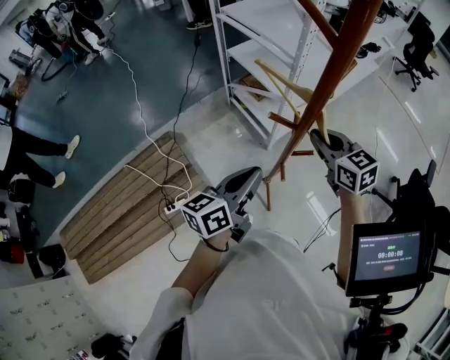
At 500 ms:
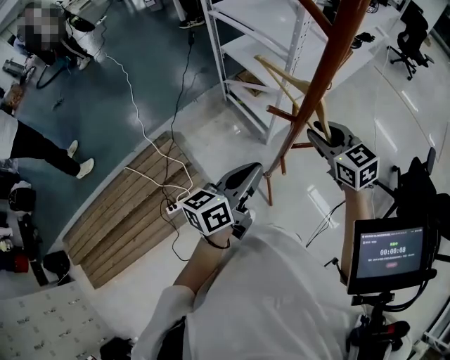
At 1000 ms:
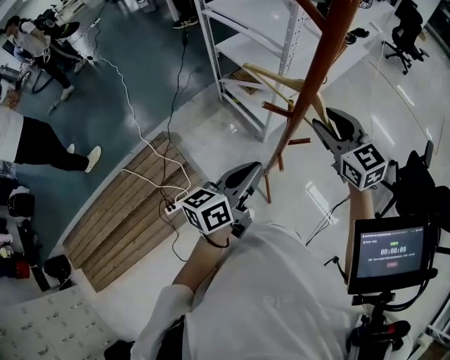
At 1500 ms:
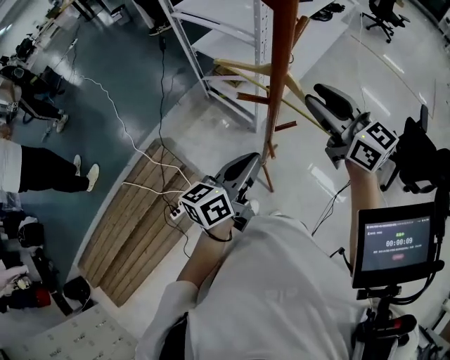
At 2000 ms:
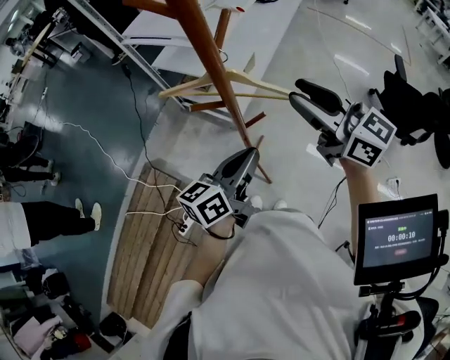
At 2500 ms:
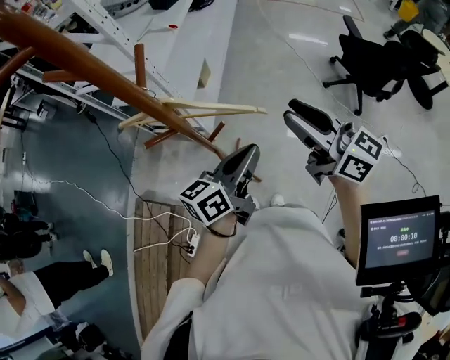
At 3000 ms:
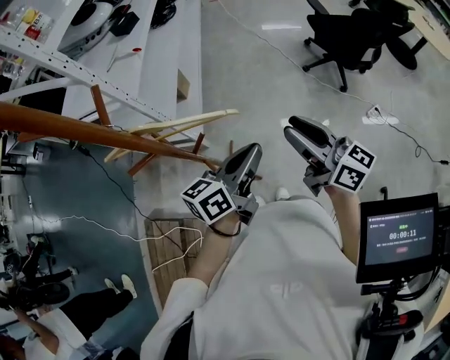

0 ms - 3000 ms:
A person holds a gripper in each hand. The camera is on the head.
0 ms - 1500 ms: The right gripper travels upward by roughly 10 cm, turns by about 20 degrees, and opens up.
1500 ms - 3000 ms: The right gripper shifts by roughly 25 cm, and changes its angle by approximately 40 degrees; the left gripper moves some 25 cm, and swivels about 40 degrees.

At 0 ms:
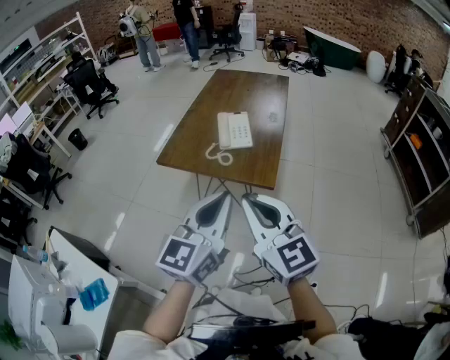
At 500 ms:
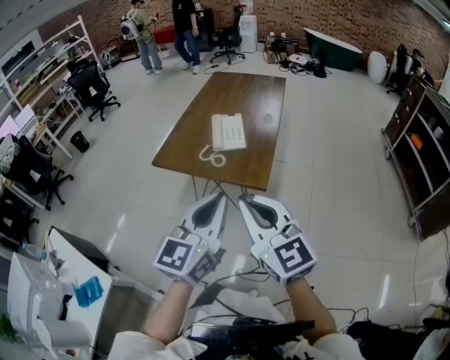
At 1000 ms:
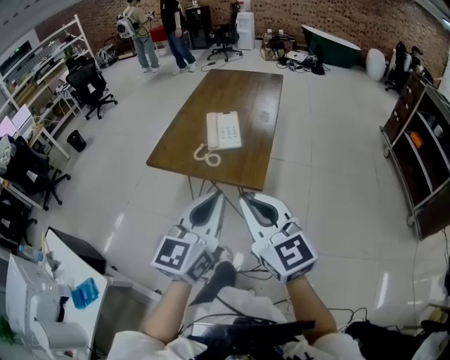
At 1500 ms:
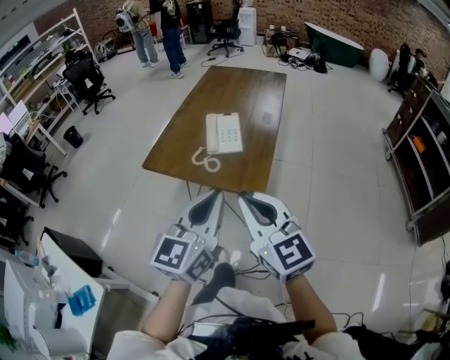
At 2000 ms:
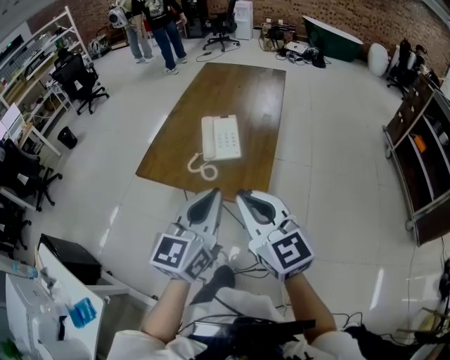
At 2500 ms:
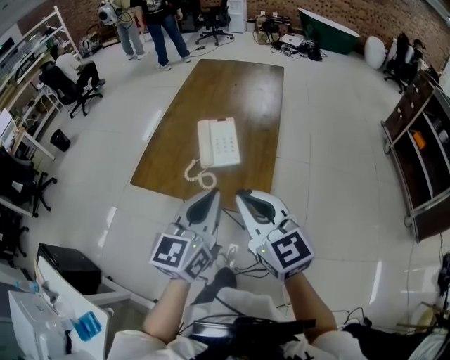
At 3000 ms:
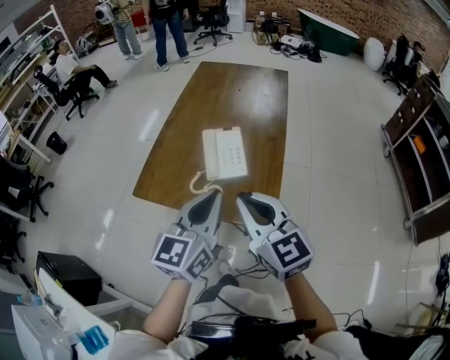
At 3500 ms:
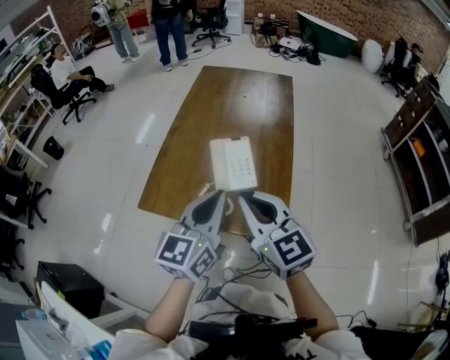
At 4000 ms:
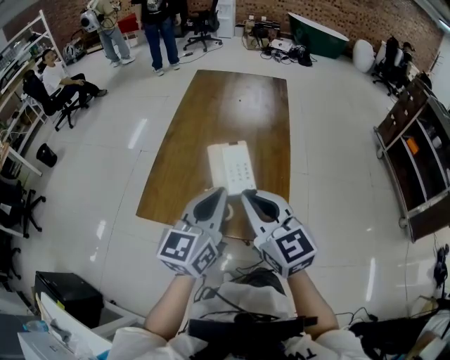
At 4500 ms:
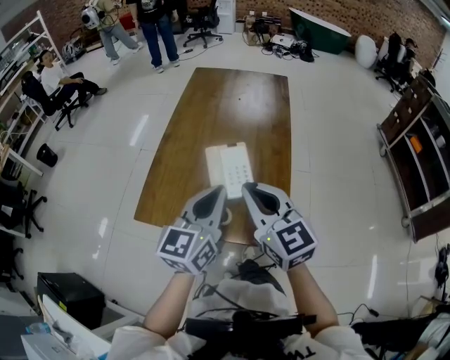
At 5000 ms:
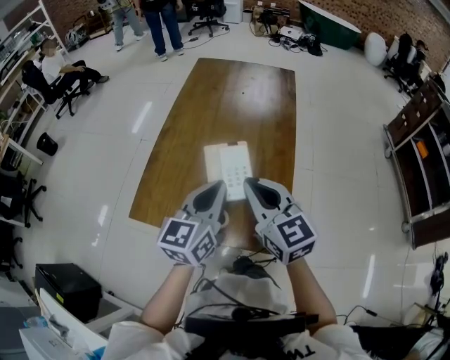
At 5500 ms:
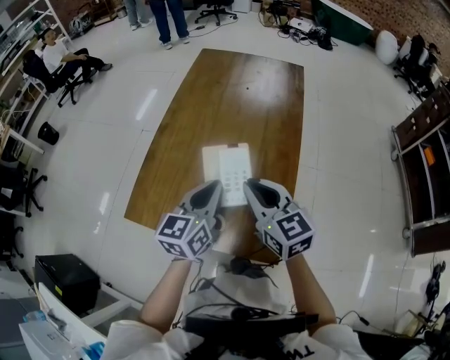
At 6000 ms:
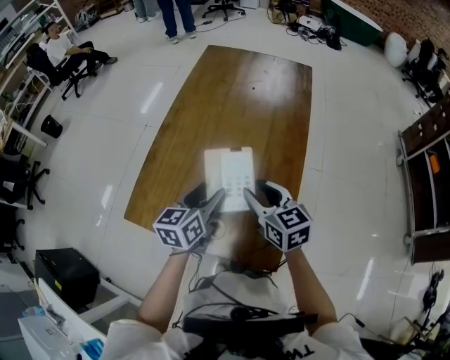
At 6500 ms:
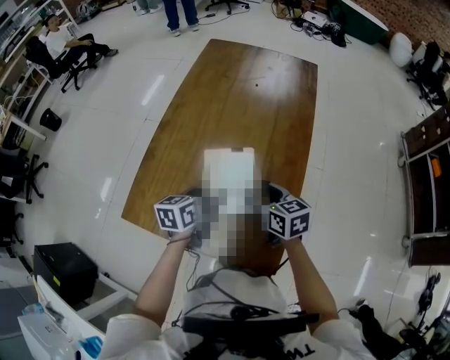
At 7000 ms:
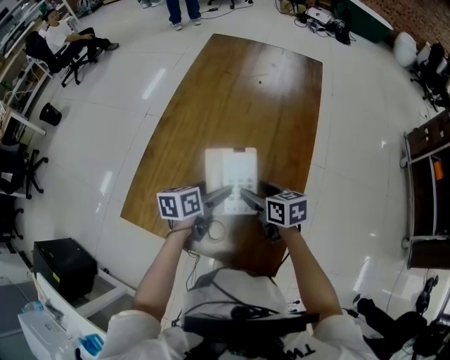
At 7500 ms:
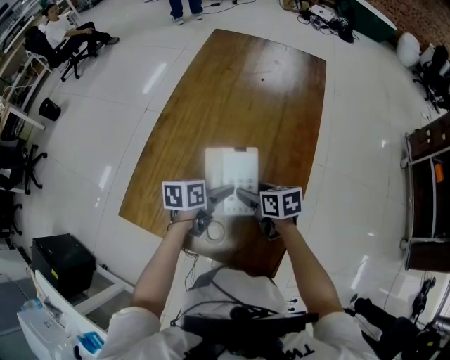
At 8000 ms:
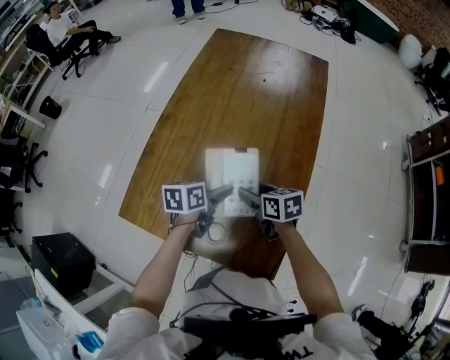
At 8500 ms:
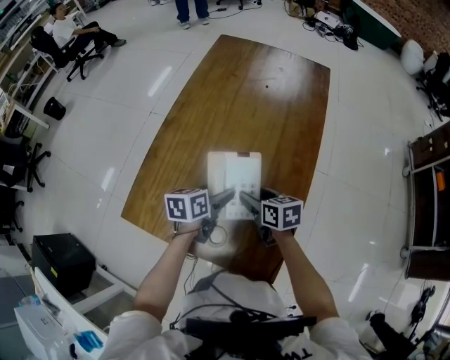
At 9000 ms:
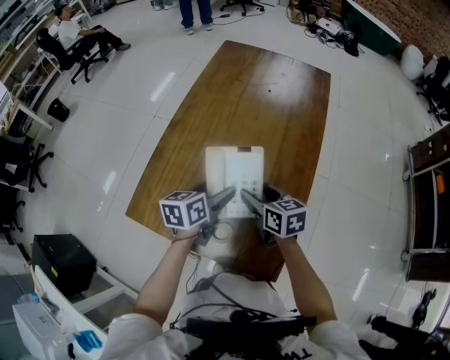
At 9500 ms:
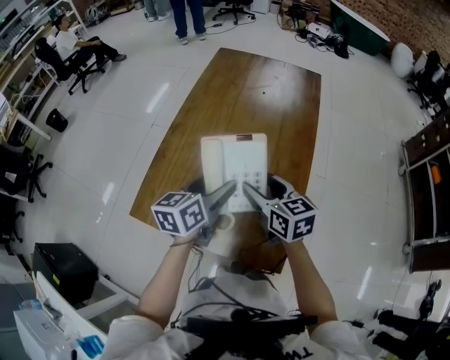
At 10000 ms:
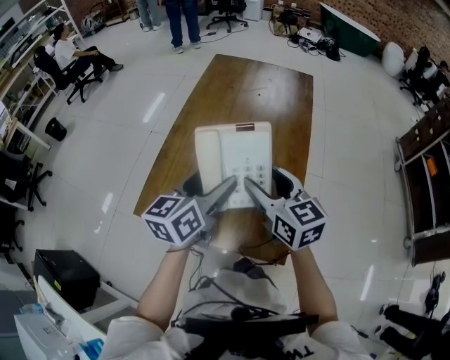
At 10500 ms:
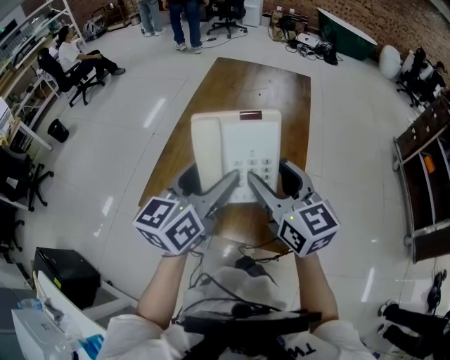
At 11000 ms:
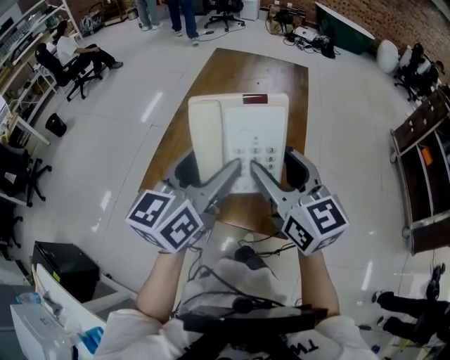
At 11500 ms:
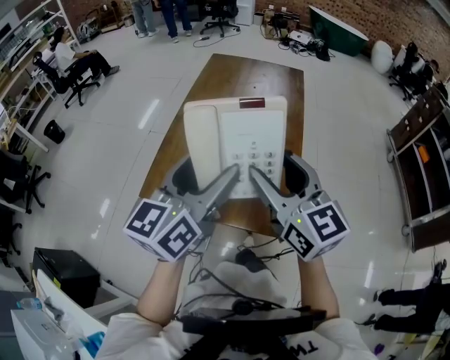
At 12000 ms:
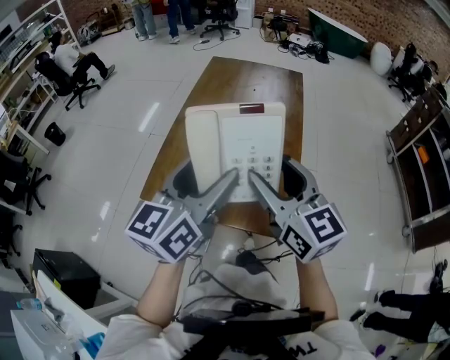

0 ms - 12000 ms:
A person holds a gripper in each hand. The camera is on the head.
0 ms - 2000 ms: The left gripper goes roughly 10 cm forward. Meanwhile the right gripper shifts approximately 15 cm forward and to the right.
2000 ms - 4000 ms: The two grippers go some 15 cm forward.
4000 ms - 6000 ms: The left gripper heads downward and forward, covering about 20 cm, rotates about 20 degrees, and opens up. Meanwhile the right gripper heads forward, downward and to the right, covering approximately 20 cm, changes its angle by approximately 20 degrees, and opens its fingers.
6000 ms - 8000 ms: The left gripper shifts some 15 cm downward and forward, and turns by approximately 30 degrees. Meanwhile the right gripper travels downward by some 15 cm, turns by about 30 degrees, and opens its fingers.
8000 ms - 10000 ms: Both grippers travel together upward, roughly 25 cm. The right gripper swivels roughly 40 degrees. Meanwhile the left gripper swivels approximately 30 degrees.
10000 ms - 12000 ms: Both grippers travel together backward and upward, about 15 cm.

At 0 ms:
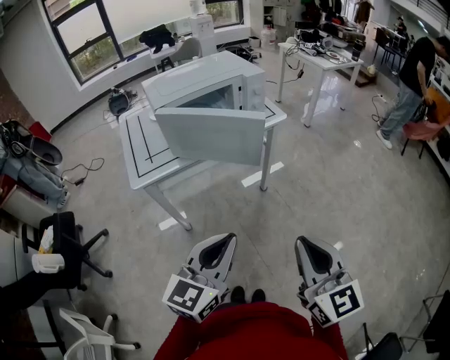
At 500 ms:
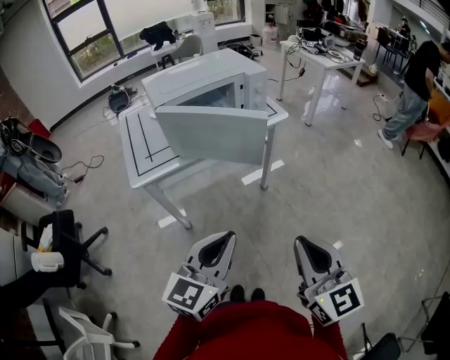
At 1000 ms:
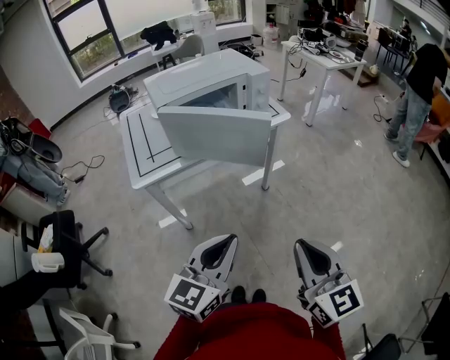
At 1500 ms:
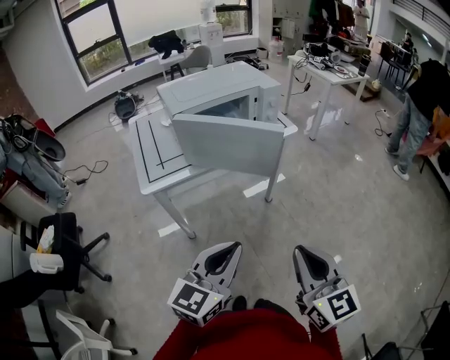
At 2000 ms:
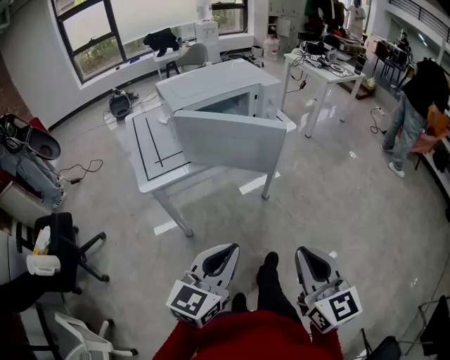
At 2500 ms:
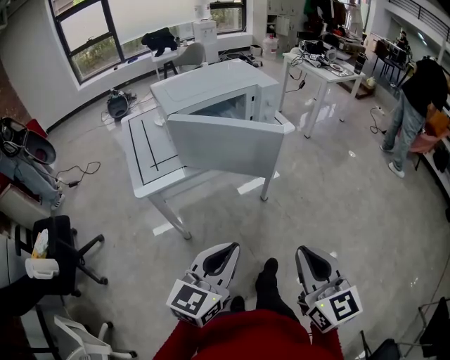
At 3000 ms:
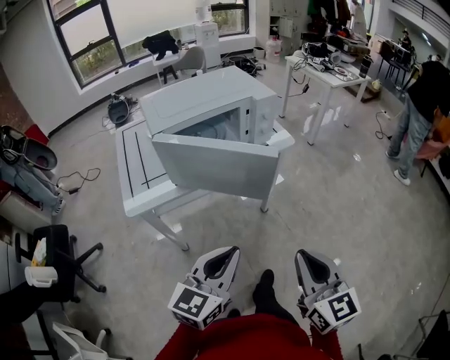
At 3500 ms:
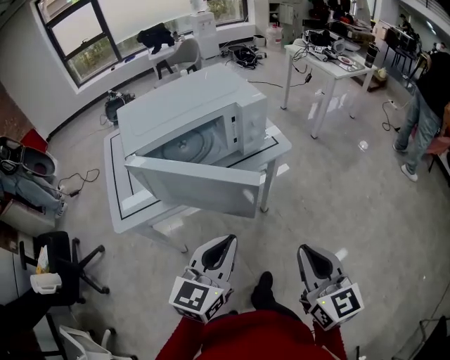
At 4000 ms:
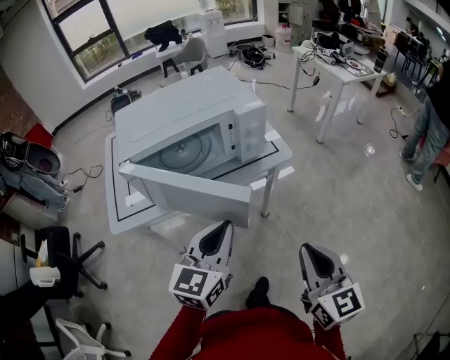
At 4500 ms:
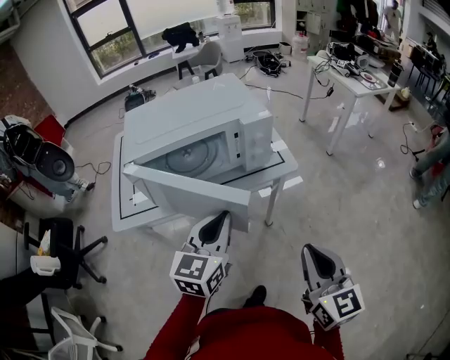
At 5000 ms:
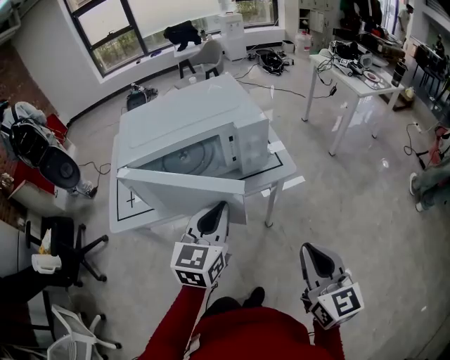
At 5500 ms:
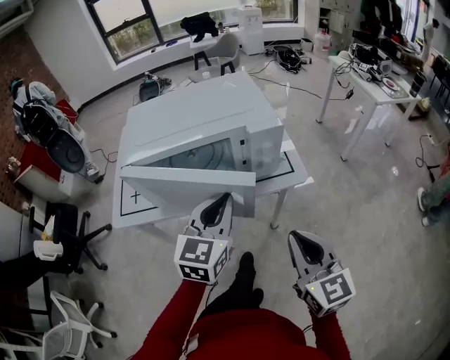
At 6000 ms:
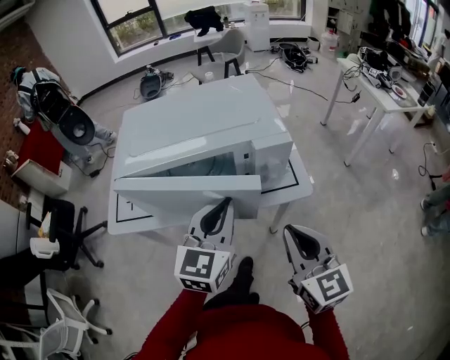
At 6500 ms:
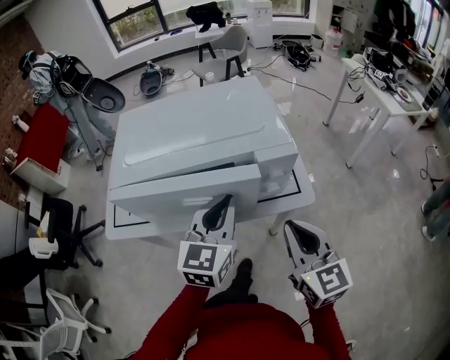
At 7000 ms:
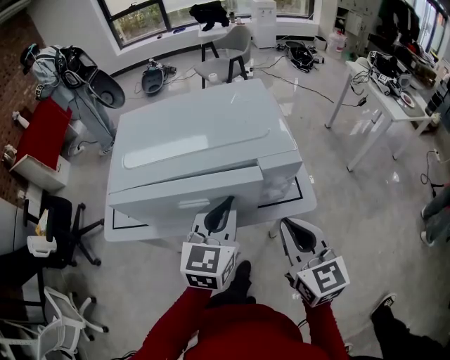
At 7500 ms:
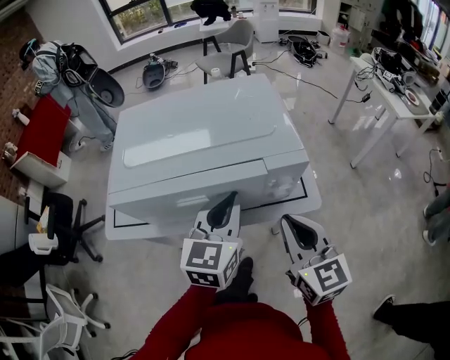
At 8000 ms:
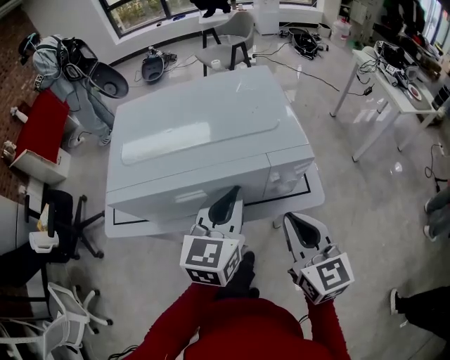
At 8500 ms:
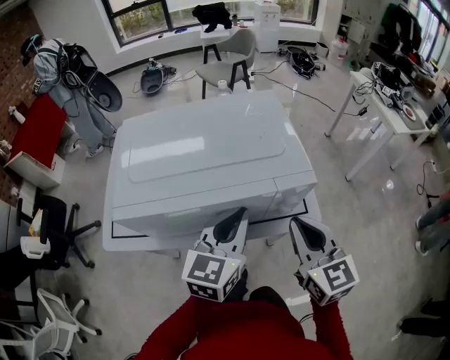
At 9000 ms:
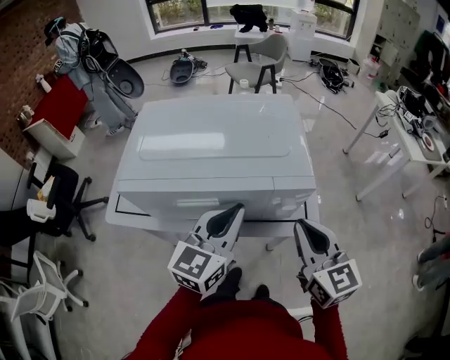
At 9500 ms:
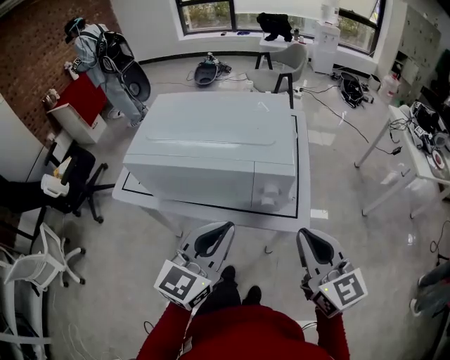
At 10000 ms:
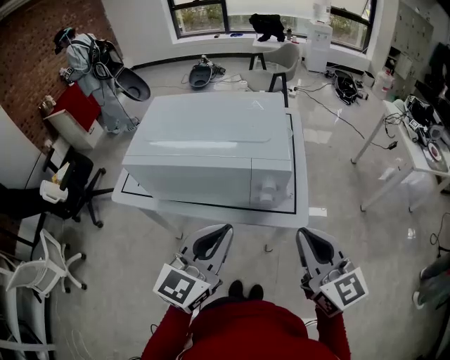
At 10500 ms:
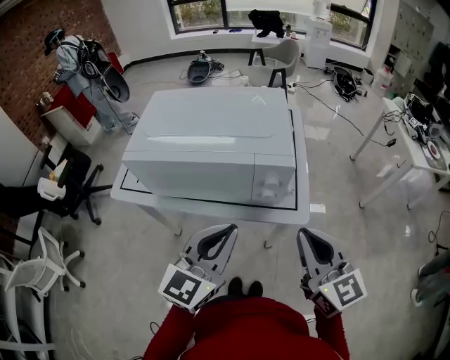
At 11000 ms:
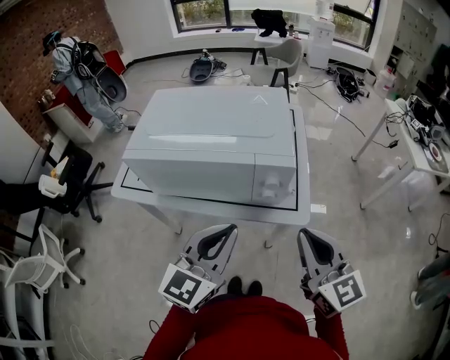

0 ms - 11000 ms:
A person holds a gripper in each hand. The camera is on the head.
0 ms - 2000 ms: The grippers move only a little.
2000 ms - 3500 ms: The right gripper travels forward and to the right by roughly 20 cm. The left gripper travels forward by roughly 20 cm.
3500 ms - 5500 ms: Both grippers travel together forward, approximately 15 cm. The left gripper swivels approximately 20 degrees.
5500 ms - 7500 ms: The left gripper heads forward, covering approximately 10 cm; the right gripper shifts approximately 15 cm forward.
7500 ms - 9000 ms: The grippers make only small movements.
9000 ms - 11000 ms: The right gripper goes roughly 5 cm backward; the left gripper shifts some 10 cm backward.
